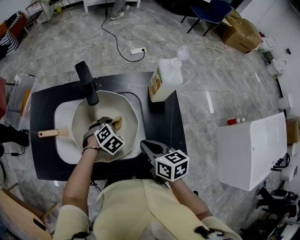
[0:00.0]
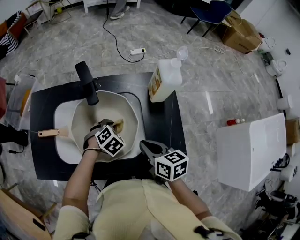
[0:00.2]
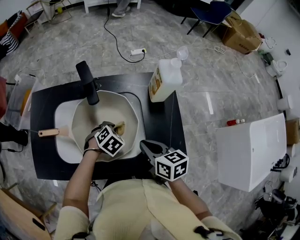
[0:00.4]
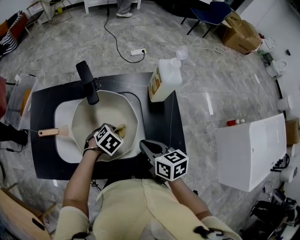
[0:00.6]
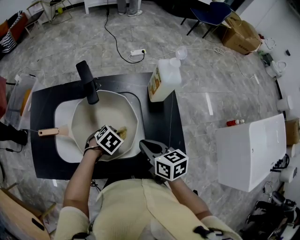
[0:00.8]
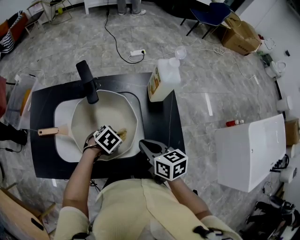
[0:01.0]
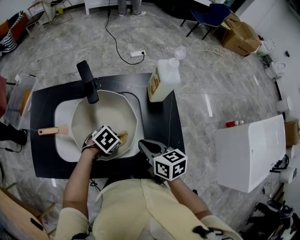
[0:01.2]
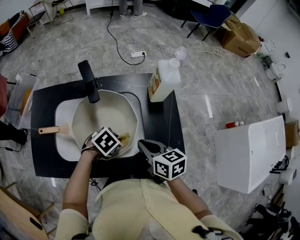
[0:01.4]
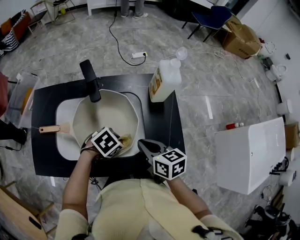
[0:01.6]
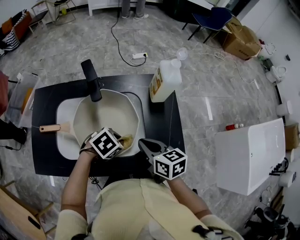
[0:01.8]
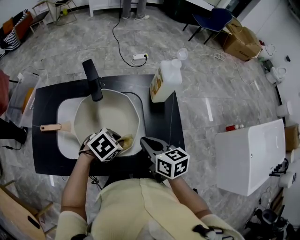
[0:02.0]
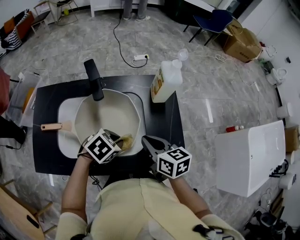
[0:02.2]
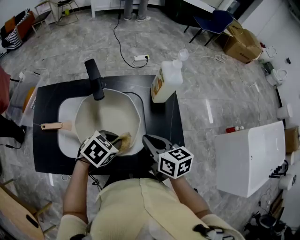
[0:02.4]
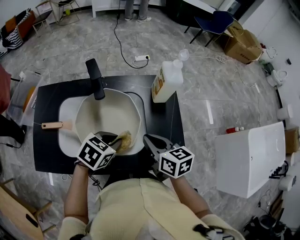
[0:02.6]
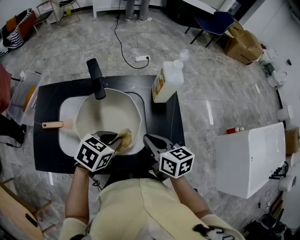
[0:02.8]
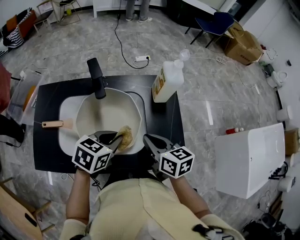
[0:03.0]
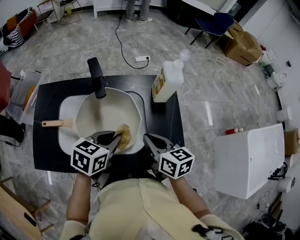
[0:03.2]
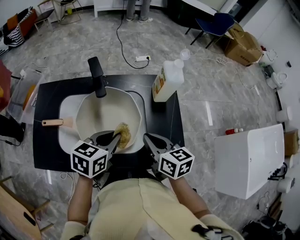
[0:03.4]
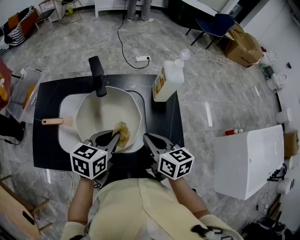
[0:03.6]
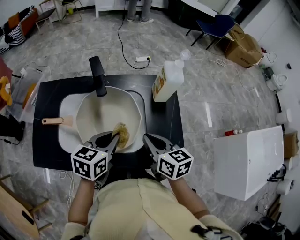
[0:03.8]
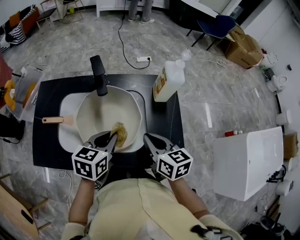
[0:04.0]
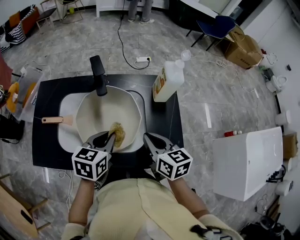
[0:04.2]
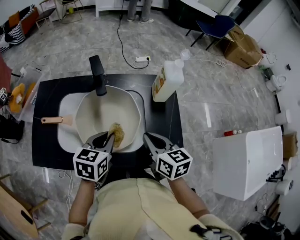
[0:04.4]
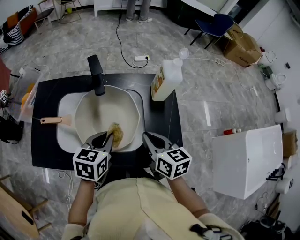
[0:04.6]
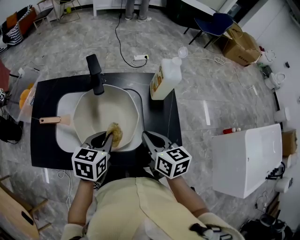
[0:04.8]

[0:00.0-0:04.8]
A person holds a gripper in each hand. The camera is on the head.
0:00.0 to 0:01.6: The left gripper moves roughly 10 cm, and swivels some 30 degrees.
0:01.6 to 0:03.2: The left gripper travels upward by approximately 10 cm, and turns by some 40 degrees.
0:03.2 to 0:04.8: The grippers move only a little.

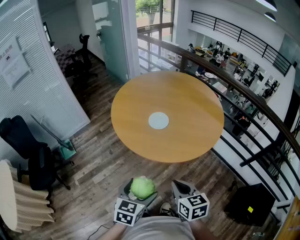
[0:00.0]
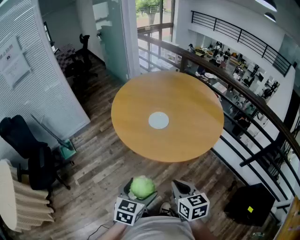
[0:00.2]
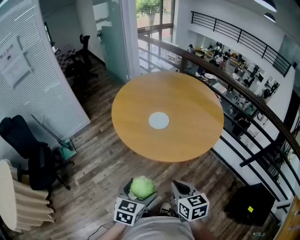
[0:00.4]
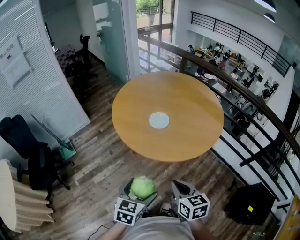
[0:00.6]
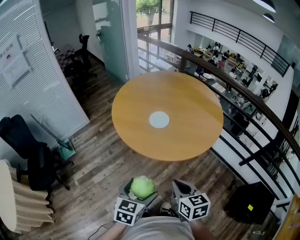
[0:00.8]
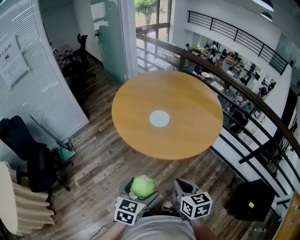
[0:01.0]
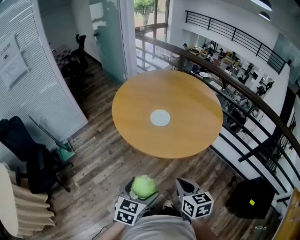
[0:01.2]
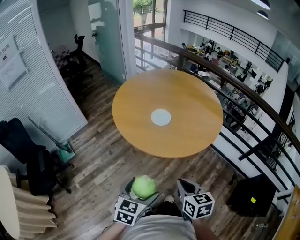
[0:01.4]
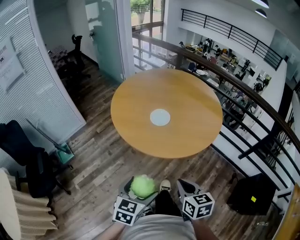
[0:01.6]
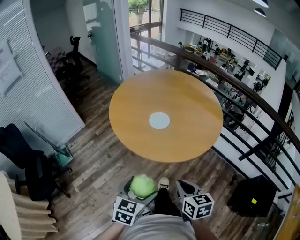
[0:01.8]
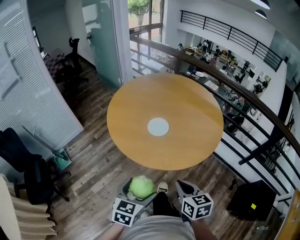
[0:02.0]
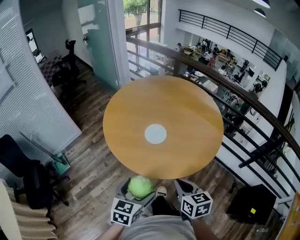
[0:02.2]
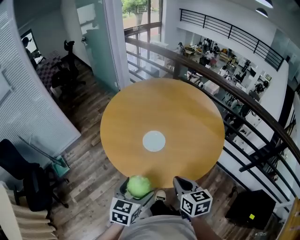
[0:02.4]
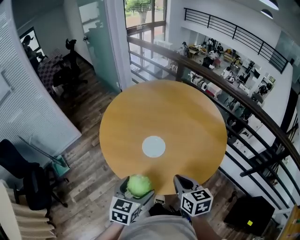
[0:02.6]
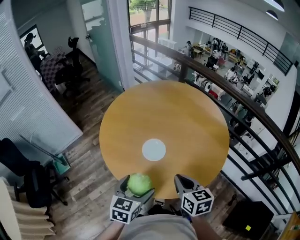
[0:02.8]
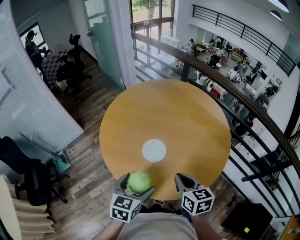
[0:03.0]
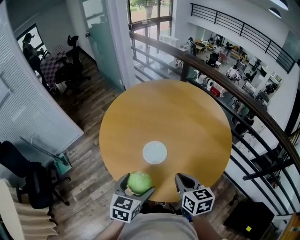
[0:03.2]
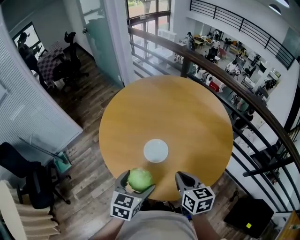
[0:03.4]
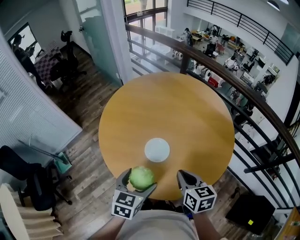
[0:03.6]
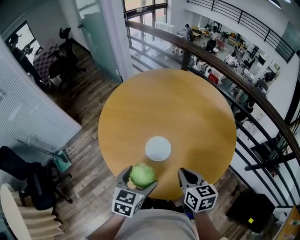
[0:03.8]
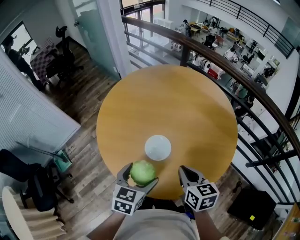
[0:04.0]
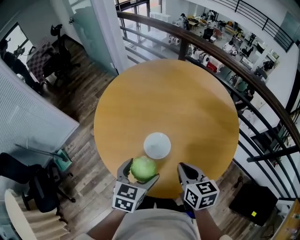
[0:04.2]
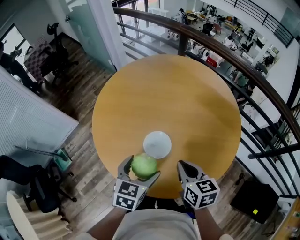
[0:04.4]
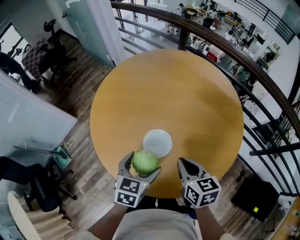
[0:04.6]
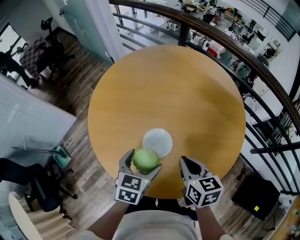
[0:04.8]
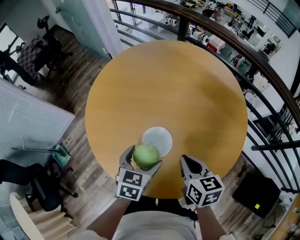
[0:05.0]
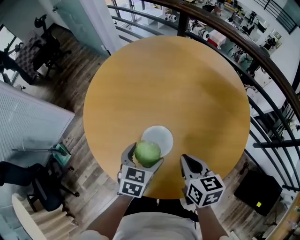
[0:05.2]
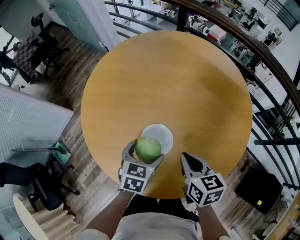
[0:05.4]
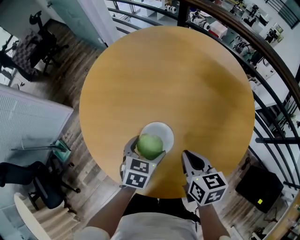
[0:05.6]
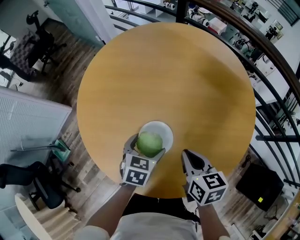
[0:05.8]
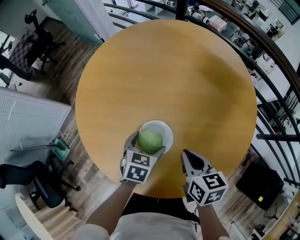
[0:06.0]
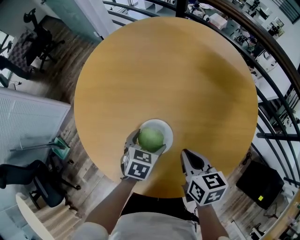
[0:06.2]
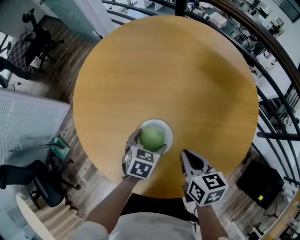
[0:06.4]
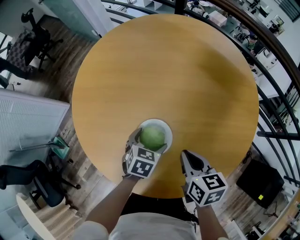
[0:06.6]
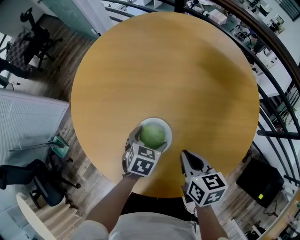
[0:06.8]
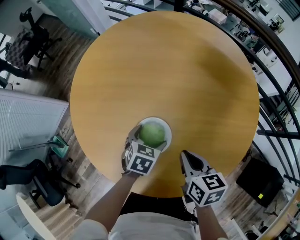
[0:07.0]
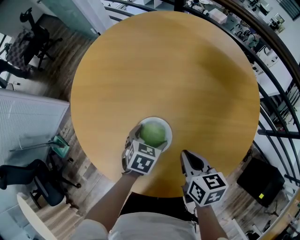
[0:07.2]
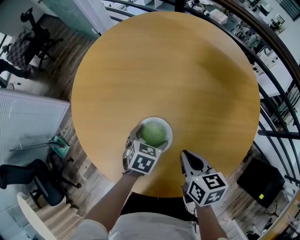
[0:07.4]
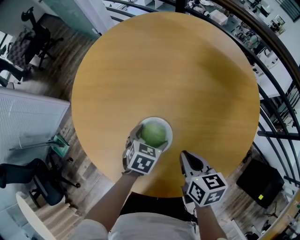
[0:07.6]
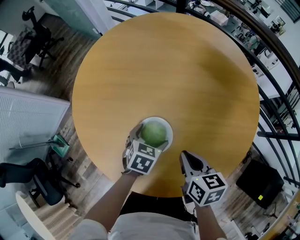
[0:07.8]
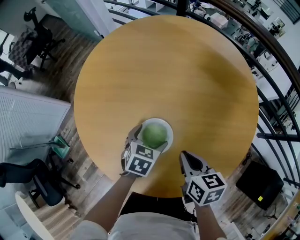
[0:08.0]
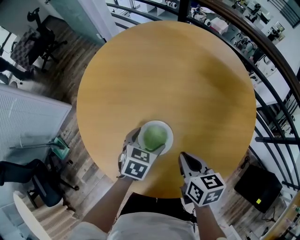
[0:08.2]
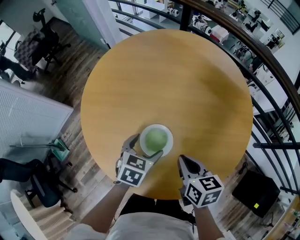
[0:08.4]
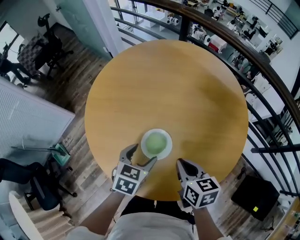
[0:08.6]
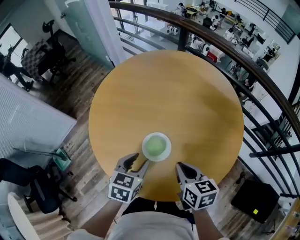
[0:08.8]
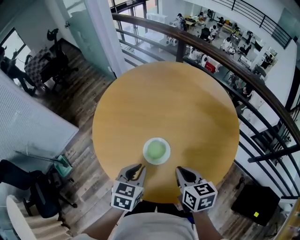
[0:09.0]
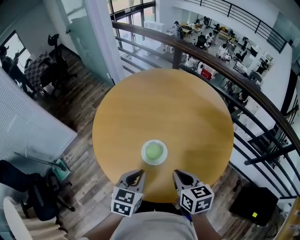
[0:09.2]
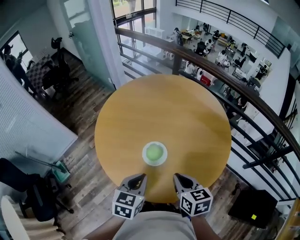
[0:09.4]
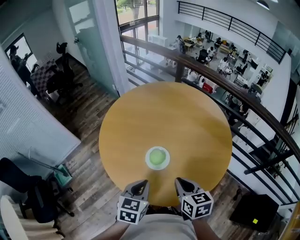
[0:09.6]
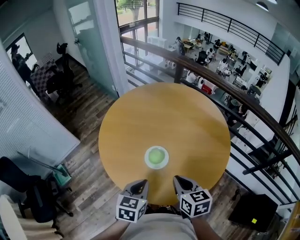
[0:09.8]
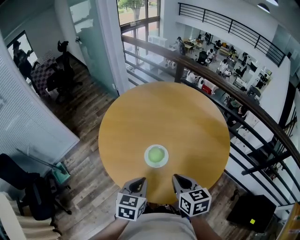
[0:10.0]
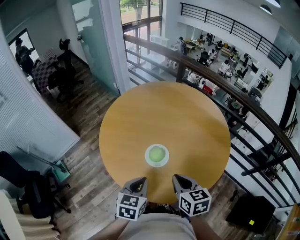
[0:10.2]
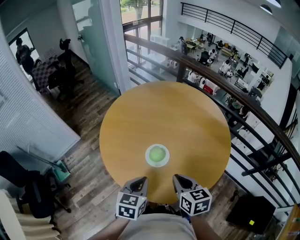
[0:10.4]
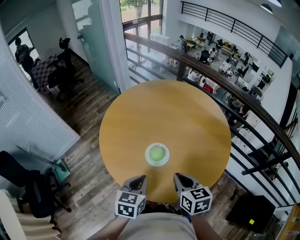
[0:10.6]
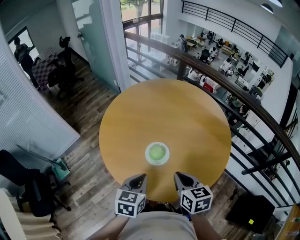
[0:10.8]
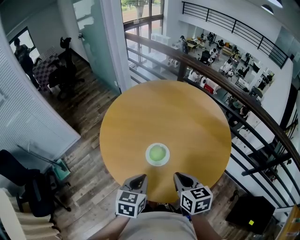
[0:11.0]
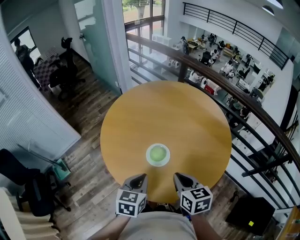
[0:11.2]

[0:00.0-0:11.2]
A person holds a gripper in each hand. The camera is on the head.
0:00.0 to 0:01.6: The left gripper heads to the left, covering some 5 cm.
0:01.6 to 0:03.2: Both grippers move forward, roughly 30 cm.
0:03.2 to 0:04.8: The grippers both shift forward and downward by roughly 15 cm.
0:04.8 to 0:06.4: The left gripper goes about 15 cm downward and forward; the right gripper travels downward by roughly 10 cm.
0:06.4 to 0:08.0: The grippers move only a little.
0:08.0 to 0:09.6: The left gripper goes roughly 30 cm upward and backward, turns by some 20 degrees, and closes up; the right gripper shifts roughly 20 cm upward and backward.
0:09.6 to 0:11.2: The grippers move only a little.

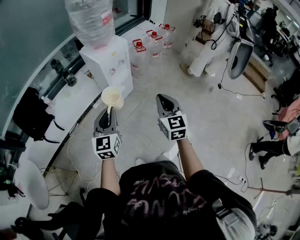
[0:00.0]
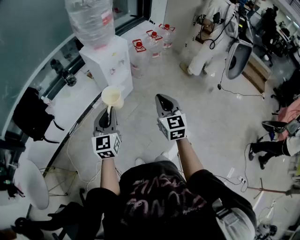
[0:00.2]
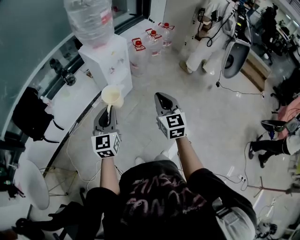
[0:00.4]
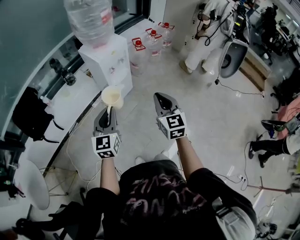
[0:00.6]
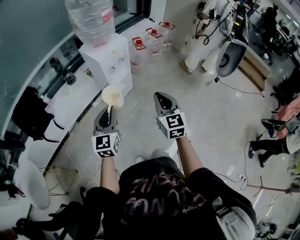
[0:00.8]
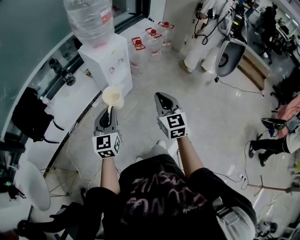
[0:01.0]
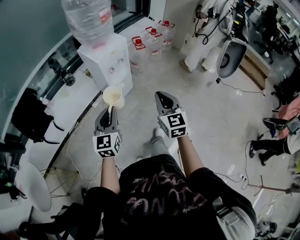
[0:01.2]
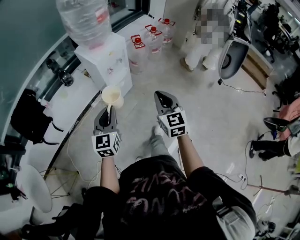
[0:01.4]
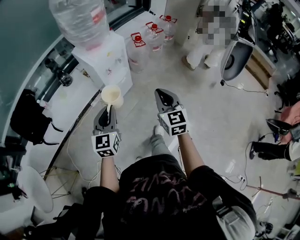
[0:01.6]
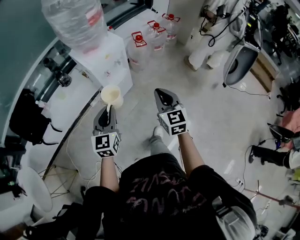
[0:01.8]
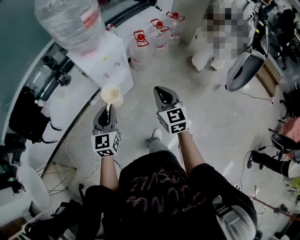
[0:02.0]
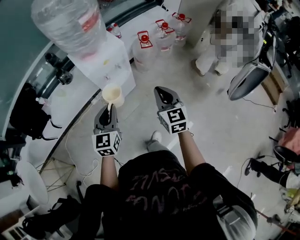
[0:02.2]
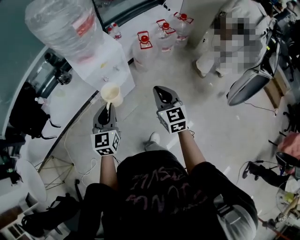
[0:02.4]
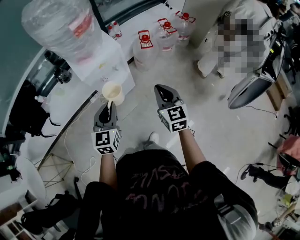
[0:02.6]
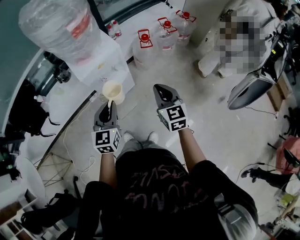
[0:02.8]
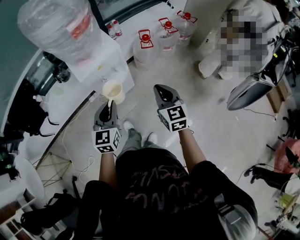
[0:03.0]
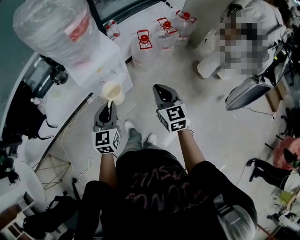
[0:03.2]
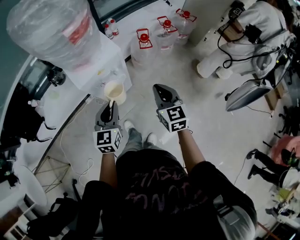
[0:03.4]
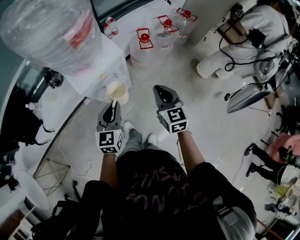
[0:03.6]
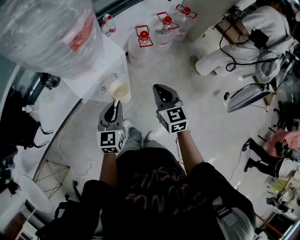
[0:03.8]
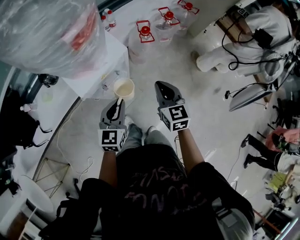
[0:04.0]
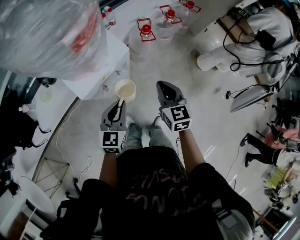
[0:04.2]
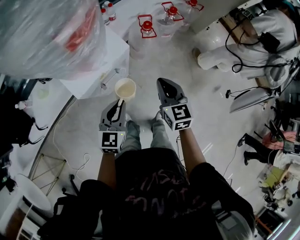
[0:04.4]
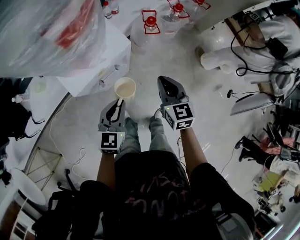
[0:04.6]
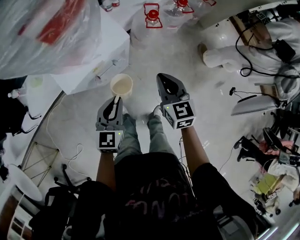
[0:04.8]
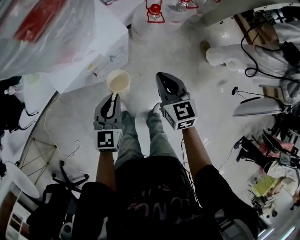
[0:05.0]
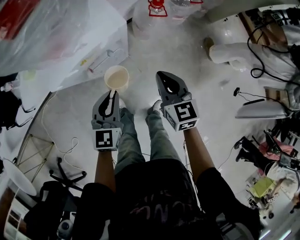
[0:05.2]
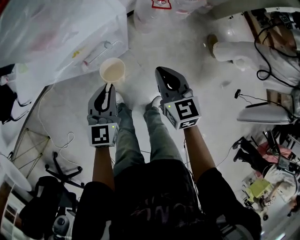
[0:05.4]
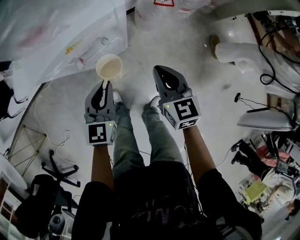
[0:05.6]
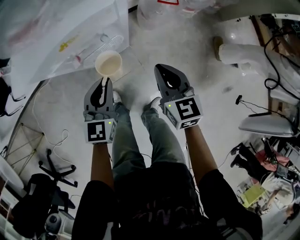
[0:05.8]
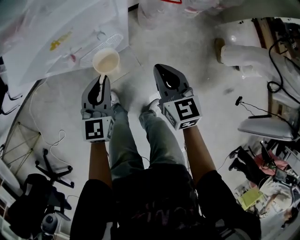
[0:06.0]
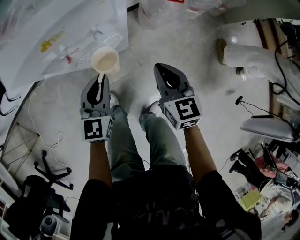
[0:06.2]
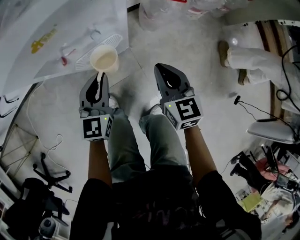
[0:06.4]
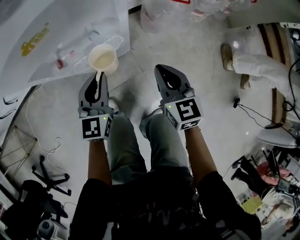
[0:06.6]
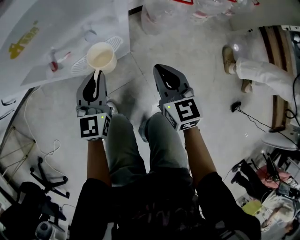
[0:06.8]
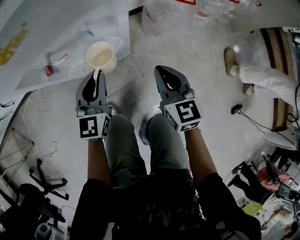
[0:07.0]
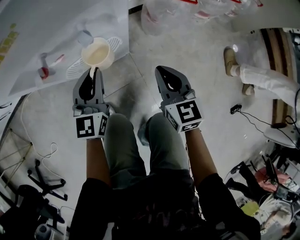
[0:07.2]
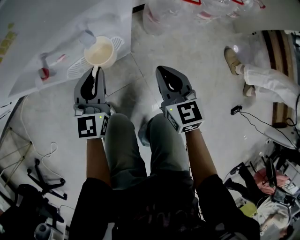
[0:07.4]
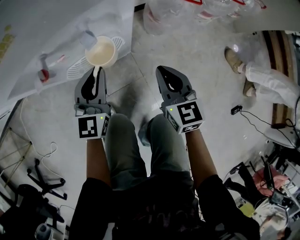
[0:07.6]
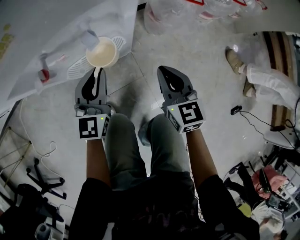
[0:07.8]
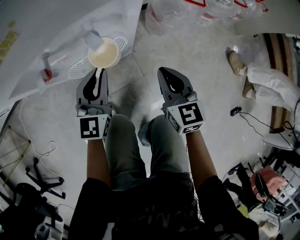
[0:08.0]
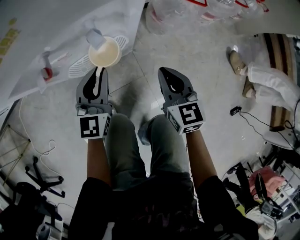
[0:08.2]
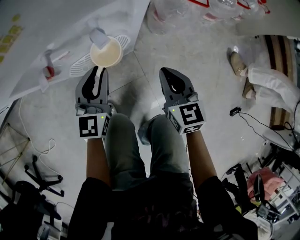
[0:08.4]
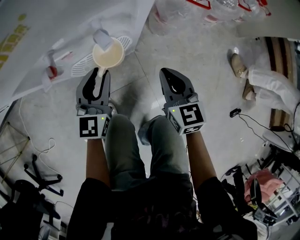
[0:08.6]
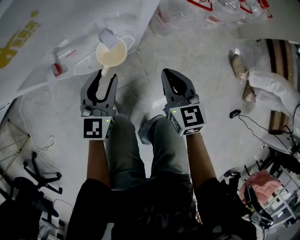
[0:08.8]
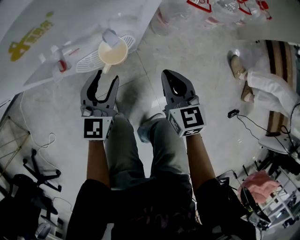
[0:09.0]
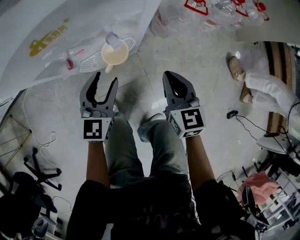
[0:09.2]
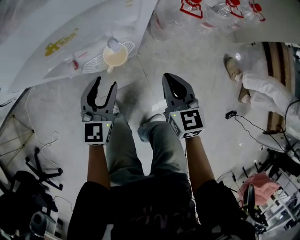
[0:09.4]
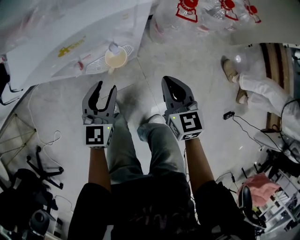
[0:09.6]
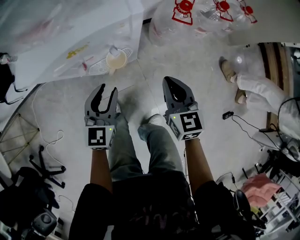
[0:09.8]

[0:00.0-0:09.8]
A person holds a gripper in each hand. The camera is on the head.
0:00.0 to 0:01.4: The grippers both shift forward by roughly 5 cm.
0:01.4 to 0:02.8: Both grippers travel together forward and to the right, about 30 cm.
0:02.8 to 0:04.2: The left gripper moves forward and downward, approximately 15 cm; the right gripper goes approximately 15 cm forward, to the left and downward.
0:04.2 to 0:05.6: Both grippers move downward, some 15 cm.
0:05.6 to 0:07.0: Both grippers move downward, about 20 cm.
0:07.0 to 0:08.4: There are only small adjustments of the grippers.
0:08.4 to 0:09.8: Both grippers travel together upward, some 15 cm.
